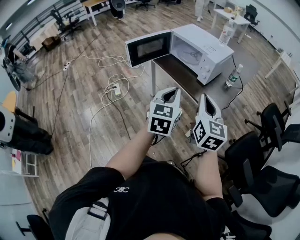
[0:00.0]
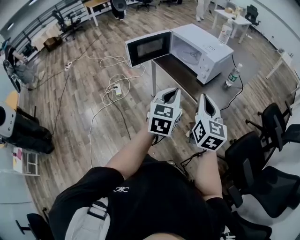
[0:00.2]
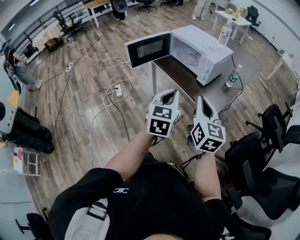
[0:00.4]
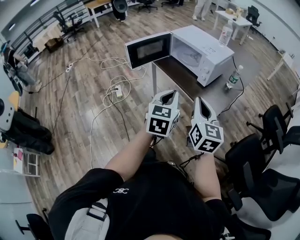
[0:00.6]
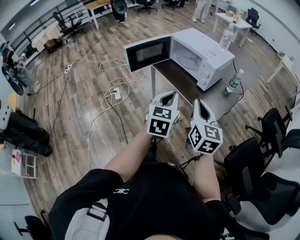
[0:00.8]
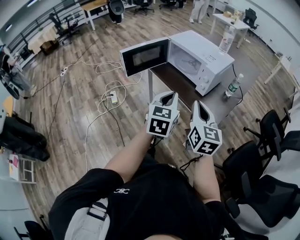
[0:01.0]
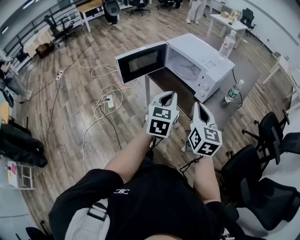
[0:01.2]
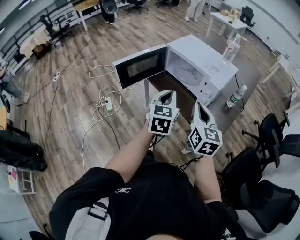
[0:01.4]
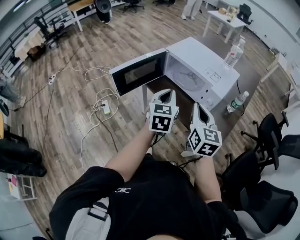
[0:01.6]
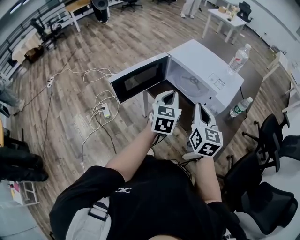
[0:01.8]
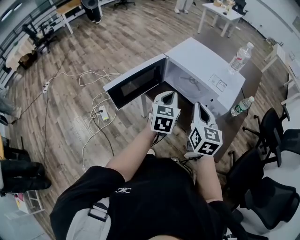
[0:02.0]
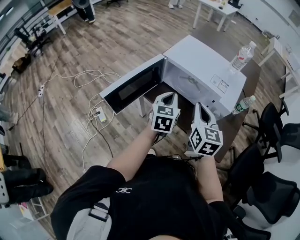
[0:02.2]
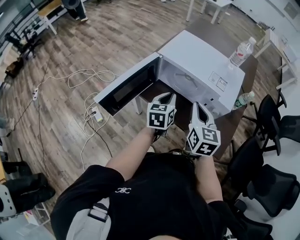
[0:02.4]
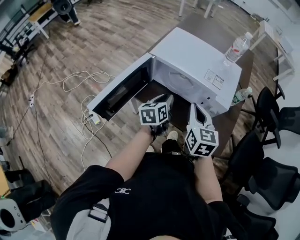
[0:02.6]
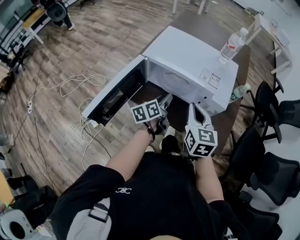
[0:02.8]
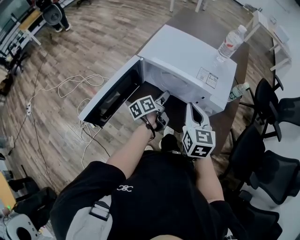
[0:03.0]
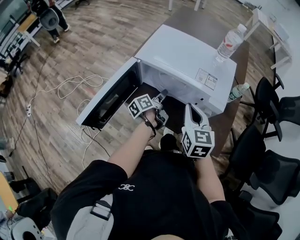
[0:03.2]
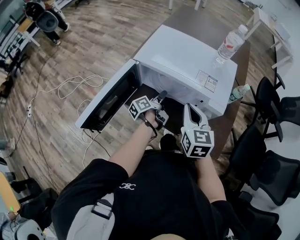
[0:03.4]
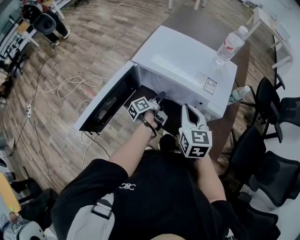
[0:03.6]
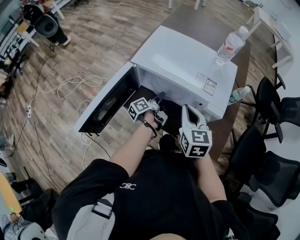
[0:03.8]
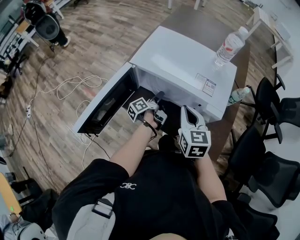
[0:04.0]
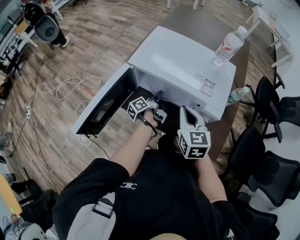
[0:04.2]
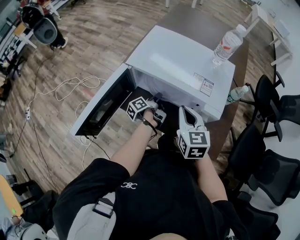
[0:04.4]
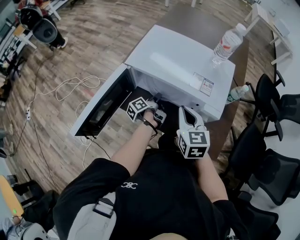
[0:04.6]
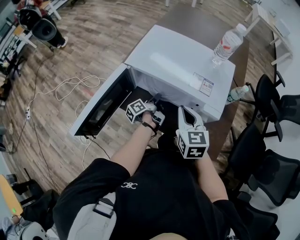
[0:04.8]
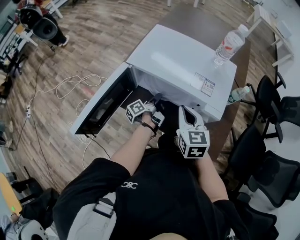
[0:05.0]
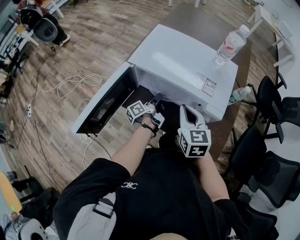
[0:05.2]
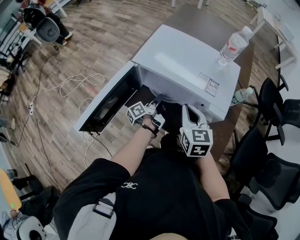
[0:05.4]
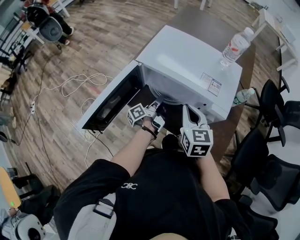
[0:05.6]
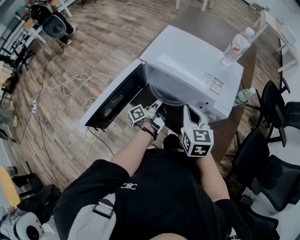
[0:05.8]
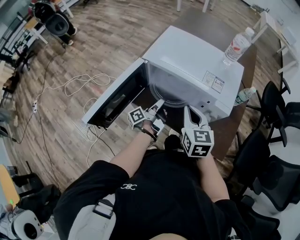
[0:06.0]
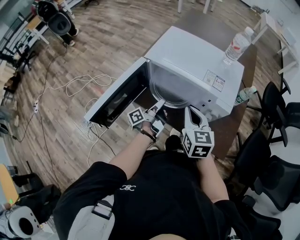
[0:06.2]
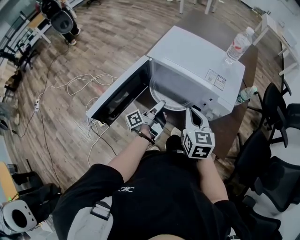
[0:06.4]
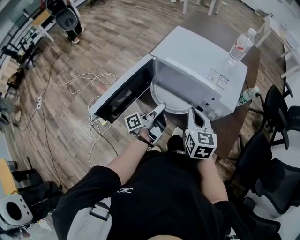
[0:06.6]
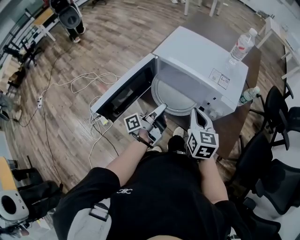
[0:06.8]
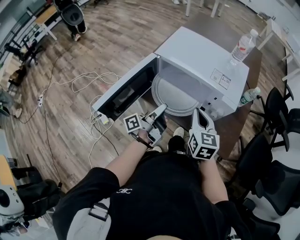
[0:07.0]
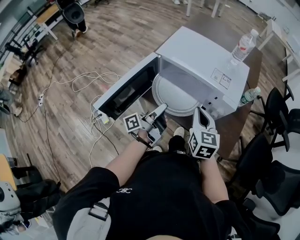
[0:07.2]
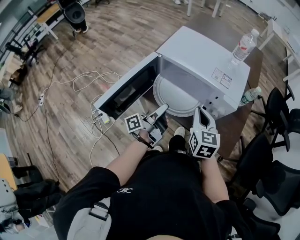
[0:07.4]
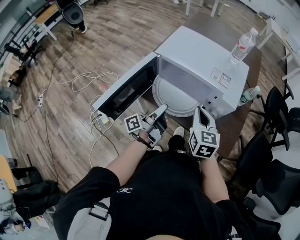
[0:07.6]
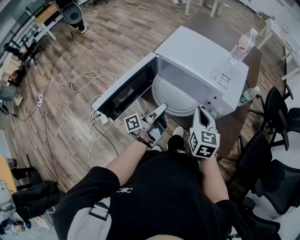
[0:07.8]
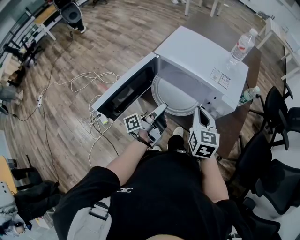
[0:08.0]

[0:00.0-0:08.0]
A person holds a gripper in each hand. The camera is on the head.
0:00.0 to 0:01.6: The grippers both shift forward by roughly 25 cm.
0:01.6 to 0:03.2: The right gripper is displaced forward and downward by about 20 cm. The left gripper moves forward and downward, some 35 cm, rotates around the line of its fingers by roughly 70 degrees, counterclockwise from behind, and opens.
0:03.2 to 0:04.8: The left gripper shifts by approximately 5 cm, and closes its fingers.
0:04.8 to 0:06.4: The left gripper is displaced backward and upward by about 15 cm, and turns by roughly 20 degrees, while the right gripper is displaced backward by approximately 5 cm.
0:06.4 to 0:08.0: The left gripper heads backward, covering about 5 cm.

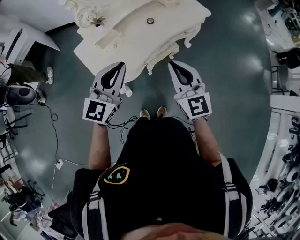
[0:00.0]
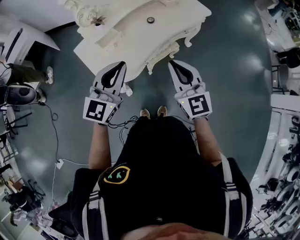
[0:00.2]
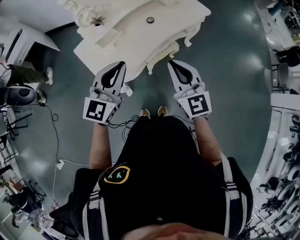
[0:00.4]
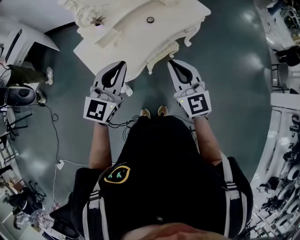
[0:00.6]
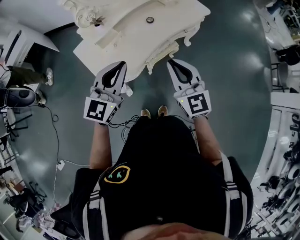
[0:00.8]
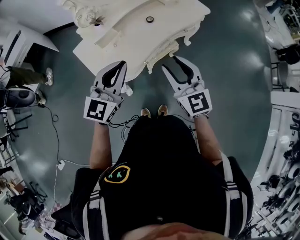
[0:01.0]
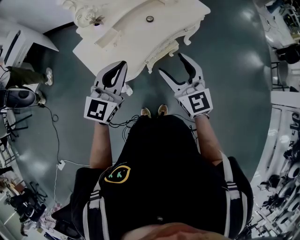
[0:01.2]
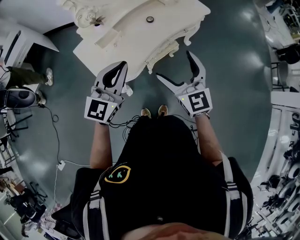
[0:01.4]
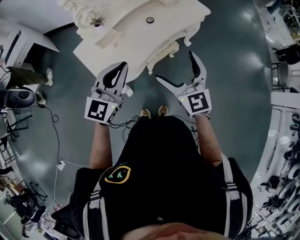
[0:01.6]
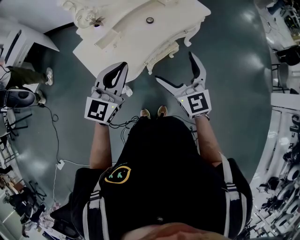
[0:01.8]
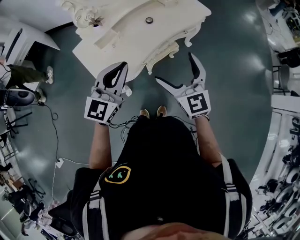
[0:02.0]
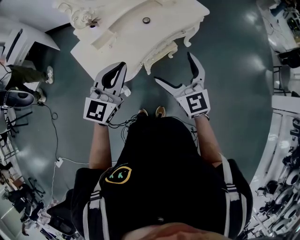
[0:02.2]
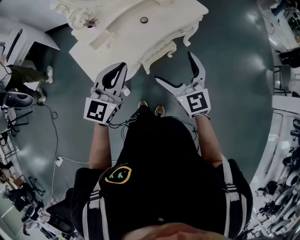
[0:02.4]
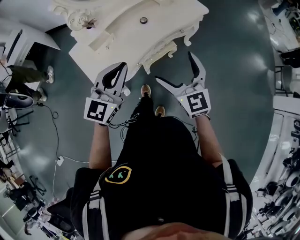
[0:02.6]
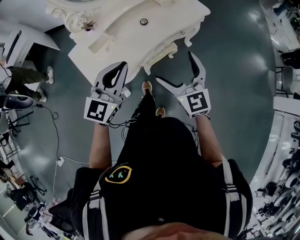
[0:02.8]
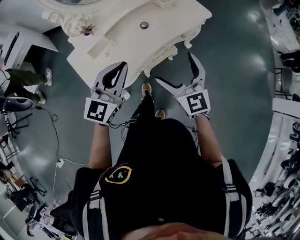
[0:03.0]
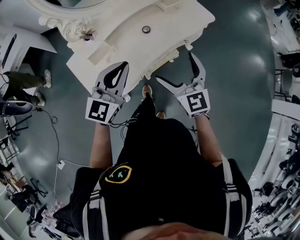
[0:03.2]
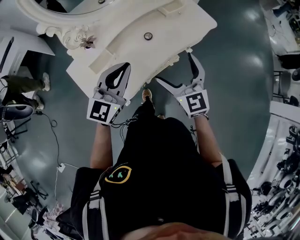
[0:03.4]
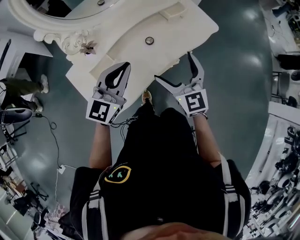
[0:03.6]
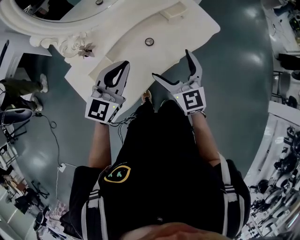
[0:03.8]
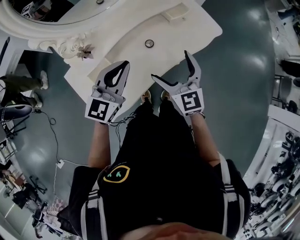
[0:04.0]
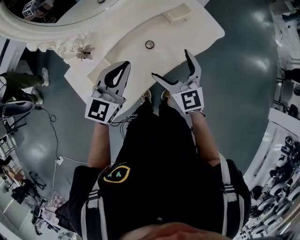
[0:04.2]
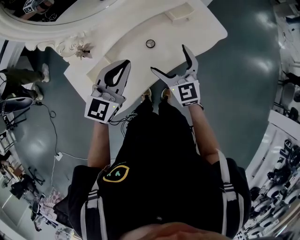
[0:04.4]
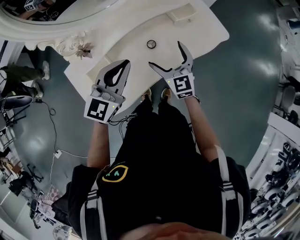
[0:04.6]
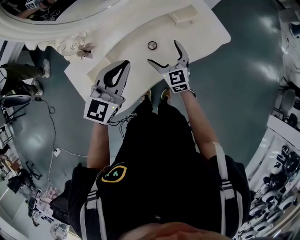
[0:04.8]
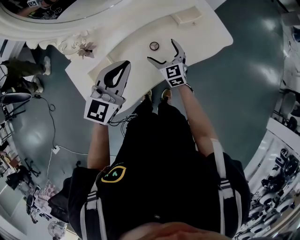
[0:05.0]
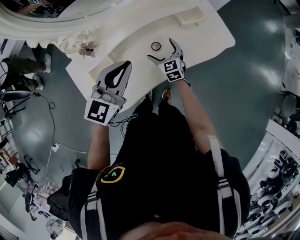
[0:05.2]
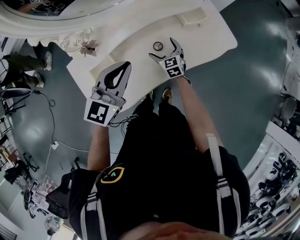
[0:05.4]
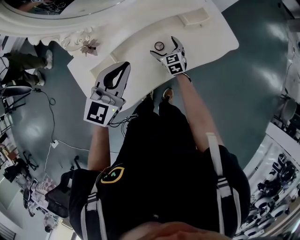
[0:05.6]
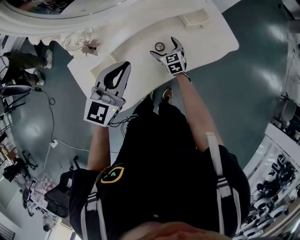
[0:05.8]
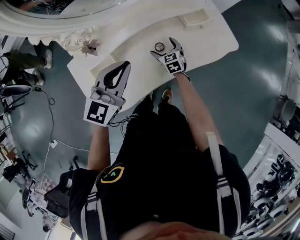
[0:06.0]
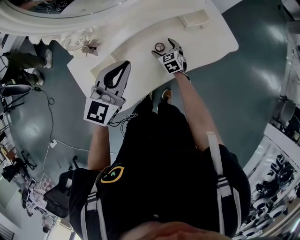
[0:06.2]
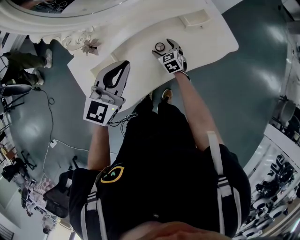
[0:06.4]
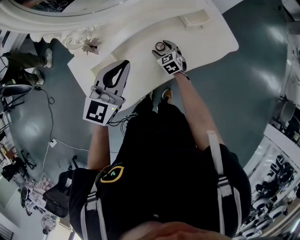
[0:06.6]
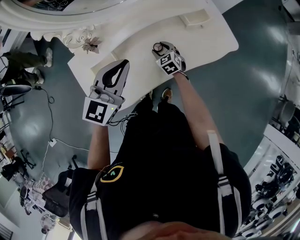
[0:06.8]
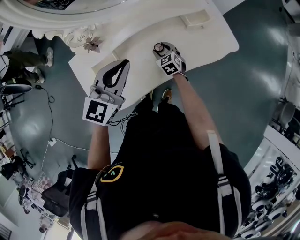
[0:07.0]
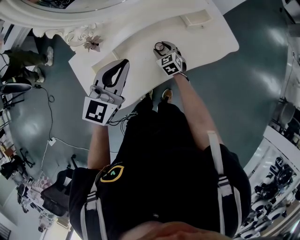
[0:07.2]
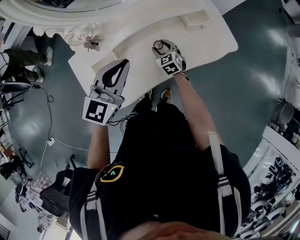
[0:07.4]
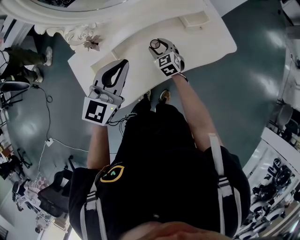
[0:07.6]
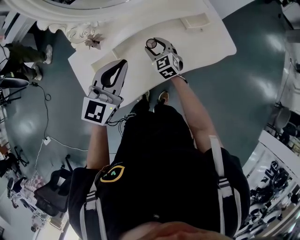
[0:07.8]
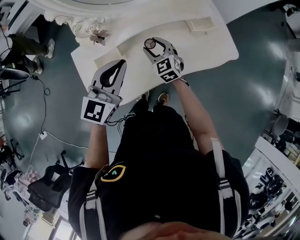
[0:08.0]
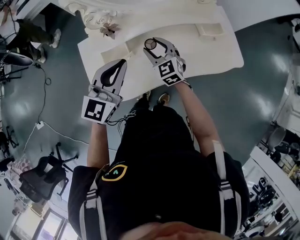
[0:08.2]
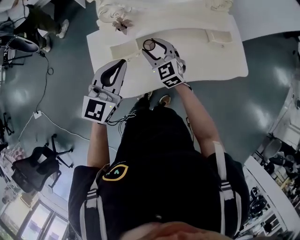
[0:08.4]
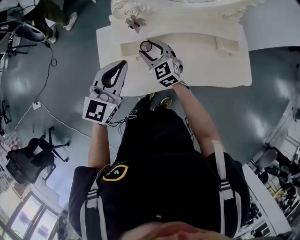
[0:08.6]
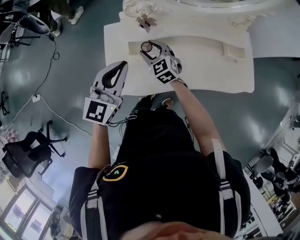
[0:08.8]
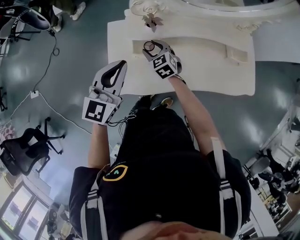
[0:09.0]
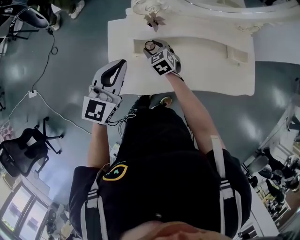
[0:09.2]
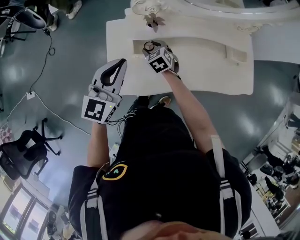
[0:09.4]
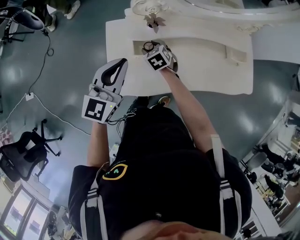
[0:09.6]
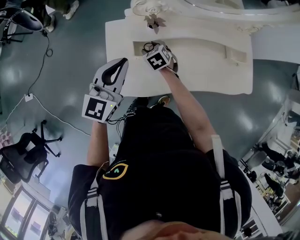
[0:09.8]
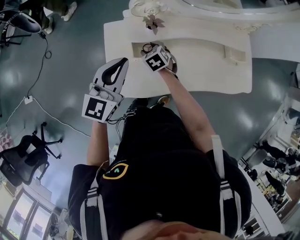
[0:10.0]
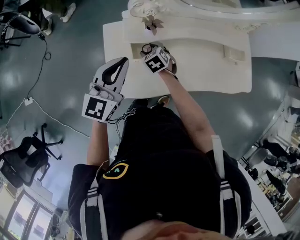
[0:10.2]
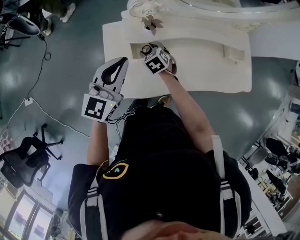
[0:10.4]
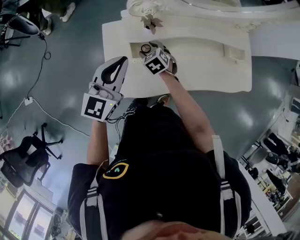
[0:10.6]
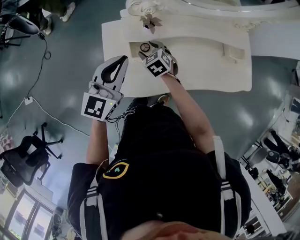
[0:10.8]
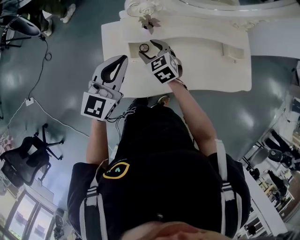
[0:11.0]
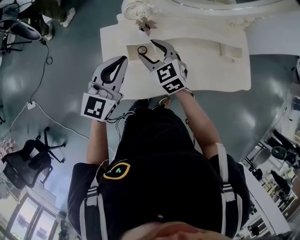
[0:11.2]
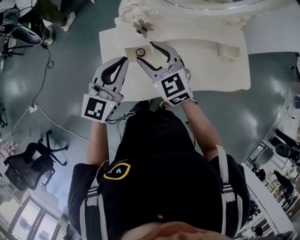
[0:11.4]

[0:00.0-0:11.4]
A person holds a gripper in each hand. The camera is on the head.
0:00.0 to 0:01.4: The right gripper opens.
0:01.4 to 0:02.8: Both grippers travel together to the right, about 5 cm.
0:02.8 to 0:04.2: The two grippers go about 25 cm forward.
0:04.2 to 0:05.6: The right gripper travels downward and forward by some 30 cm, and turns by about 20 degrees.
0:05.6 to 0:07.2: The right gripper closes up.
0:07.2 to 0:08.6: The right gripper shifts by approximately 30 cm, and turns by some 40 degrees. The left gripper changes place by about 15 cm, and swivels some 20 degrees.
0:08.6 to 0:10.0: The right gripper moves downward and to the left, about 15 cm, and points its fingers about 30 degrees further downward, while the left gripper heads to the left, covering about 10 cm.
0:10.0 to 0:11.4: The right gripper heads upward, covering approximately 25 cm, and tilts its fingers roughly 30 degrees upward, while the left gripper shifts by approximately 5 cm.

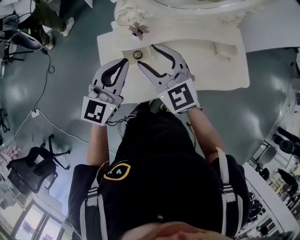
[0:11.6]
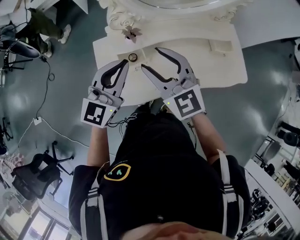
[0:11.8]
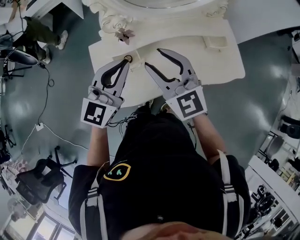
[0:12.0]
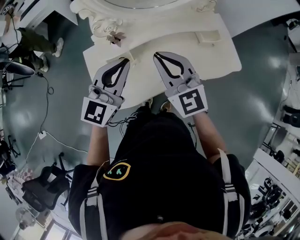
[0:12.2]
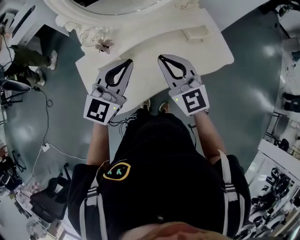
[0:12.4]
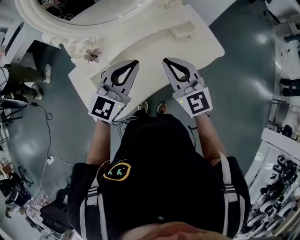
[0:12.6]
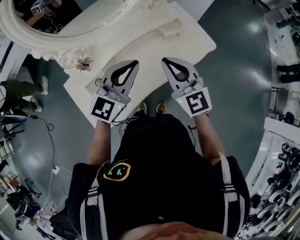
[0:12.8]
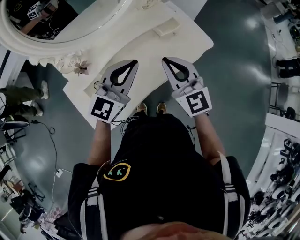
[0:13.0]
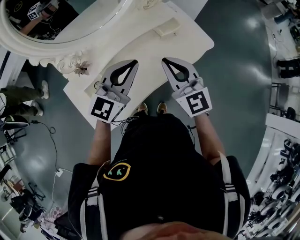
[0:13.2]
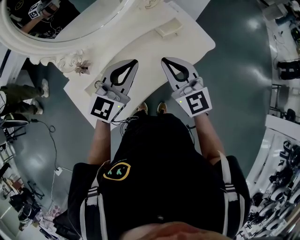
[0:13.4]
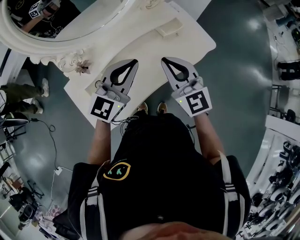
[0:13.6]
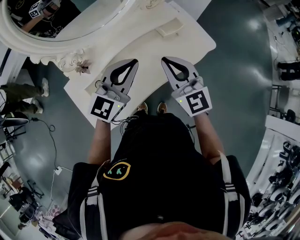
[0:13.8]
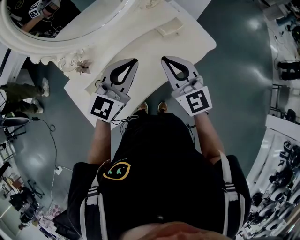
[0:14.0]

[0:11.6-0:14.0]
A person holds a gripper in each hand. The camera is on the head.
0:11.6 to 0:12.8: The right gripper changes place by approximately 30 cm, swivels roughly 40 degrees, and closes its fingers, while the left gripper shifts by about 25 cm, and turns by some 30 degrees.
0:12.8 to 0:14.0: There are only small adjustments of the grippers.

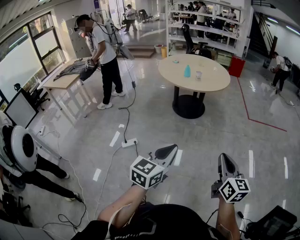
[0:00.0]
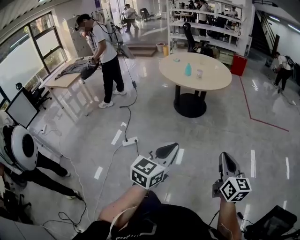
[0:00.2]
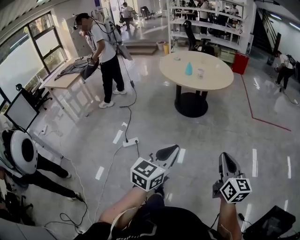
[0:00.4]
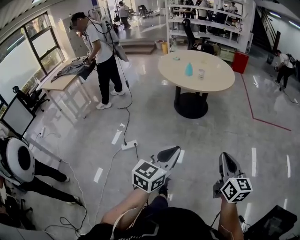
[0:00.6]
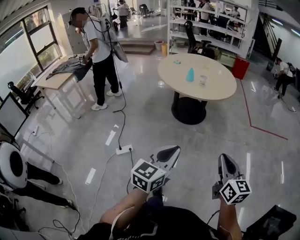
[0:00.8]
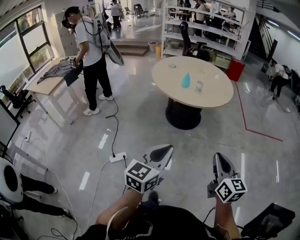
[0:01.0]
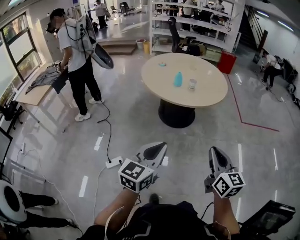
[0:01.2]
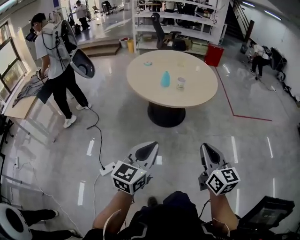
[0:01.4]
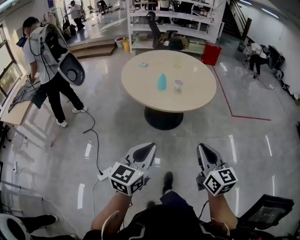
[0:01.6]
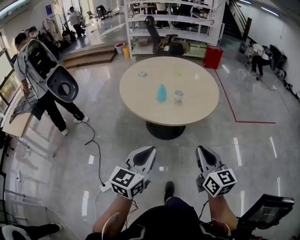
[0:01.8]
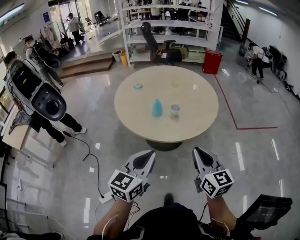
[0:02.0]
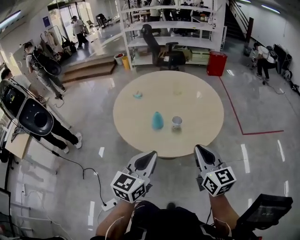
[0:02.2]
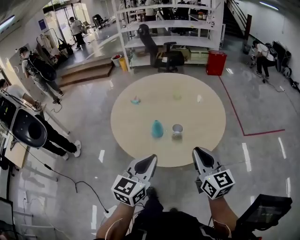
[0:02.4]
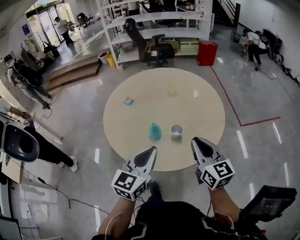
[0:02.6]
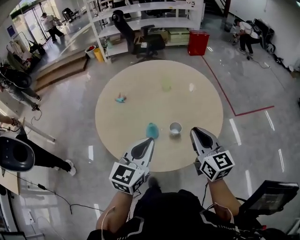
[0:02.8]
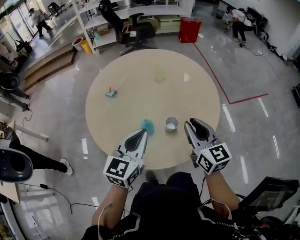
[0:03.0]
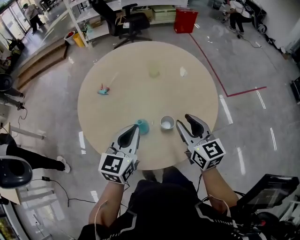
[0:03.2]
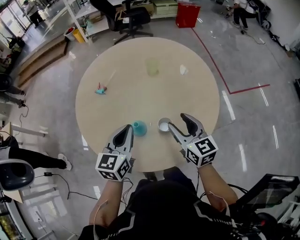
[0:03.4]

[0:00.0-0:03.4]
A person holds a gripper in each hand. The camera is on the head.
0:00.0 to 0:01.6: The pair of grippers is taken forward, roughly 40 cm.
0:01.6 to 0:03.4: Both grippers are carried forward, approximately 60 cm. The right gripper opens its fingers.
